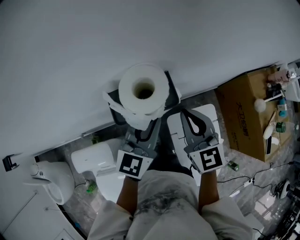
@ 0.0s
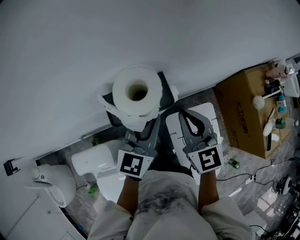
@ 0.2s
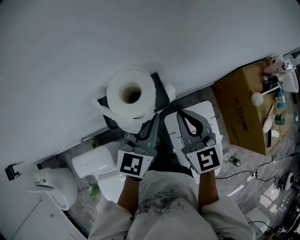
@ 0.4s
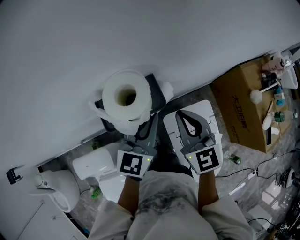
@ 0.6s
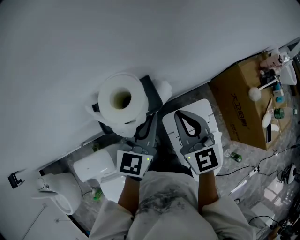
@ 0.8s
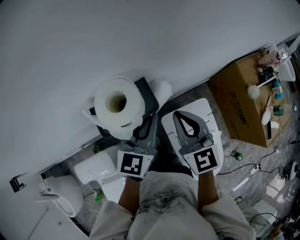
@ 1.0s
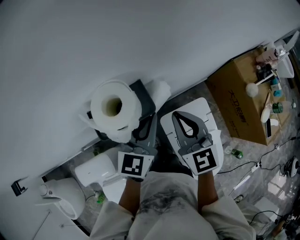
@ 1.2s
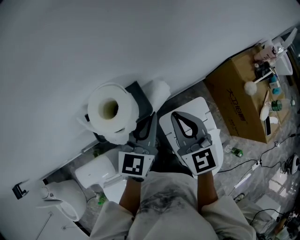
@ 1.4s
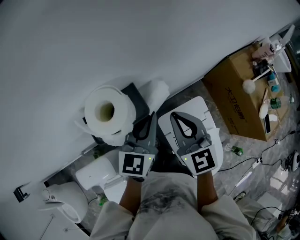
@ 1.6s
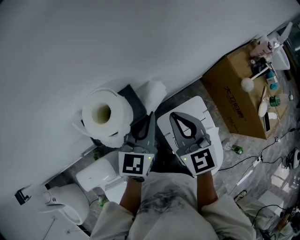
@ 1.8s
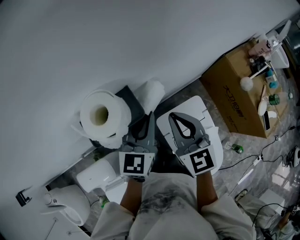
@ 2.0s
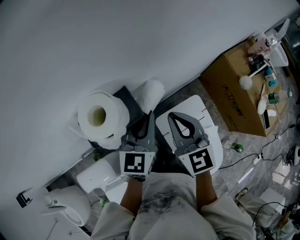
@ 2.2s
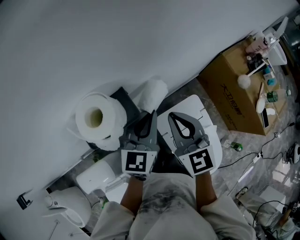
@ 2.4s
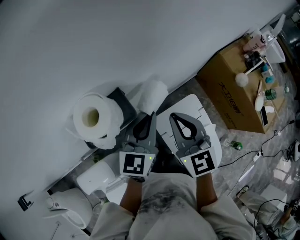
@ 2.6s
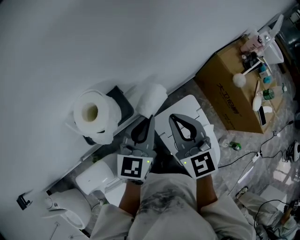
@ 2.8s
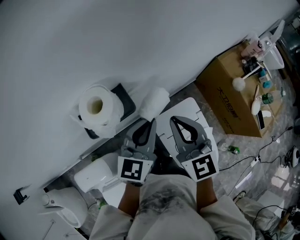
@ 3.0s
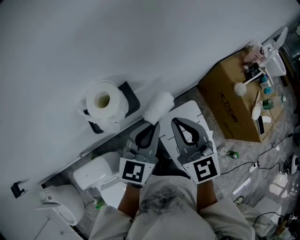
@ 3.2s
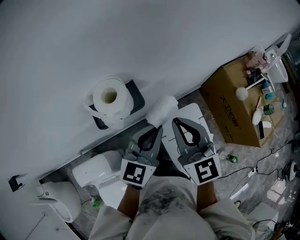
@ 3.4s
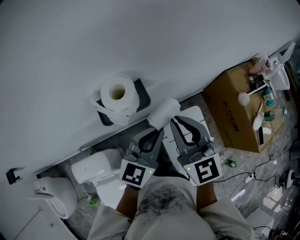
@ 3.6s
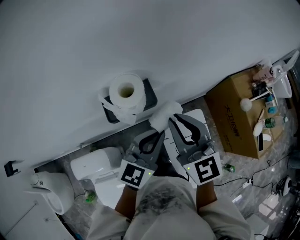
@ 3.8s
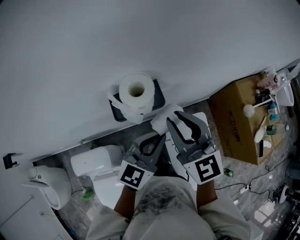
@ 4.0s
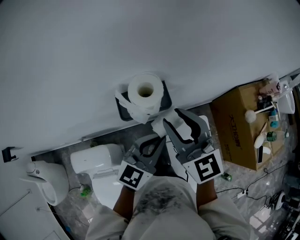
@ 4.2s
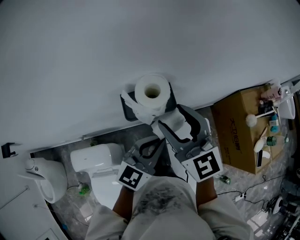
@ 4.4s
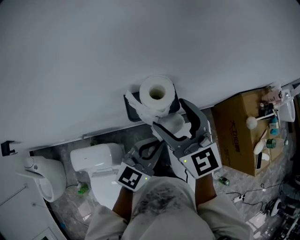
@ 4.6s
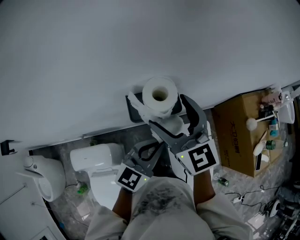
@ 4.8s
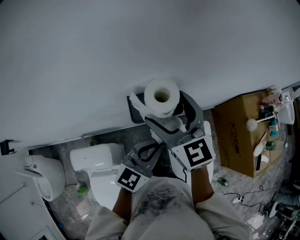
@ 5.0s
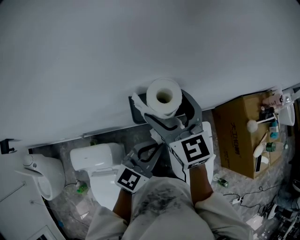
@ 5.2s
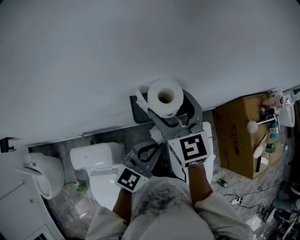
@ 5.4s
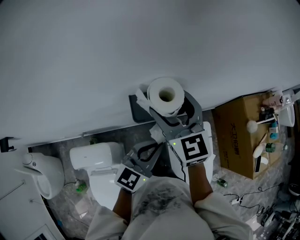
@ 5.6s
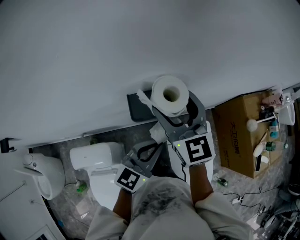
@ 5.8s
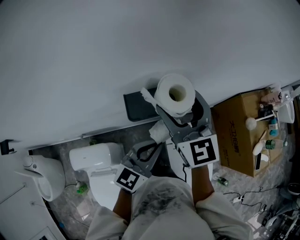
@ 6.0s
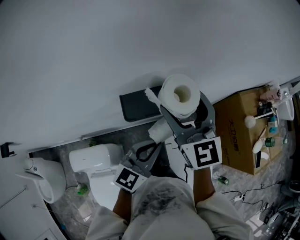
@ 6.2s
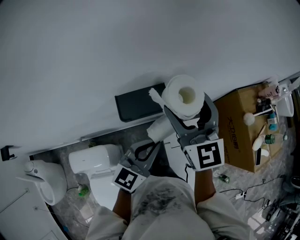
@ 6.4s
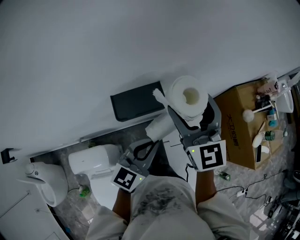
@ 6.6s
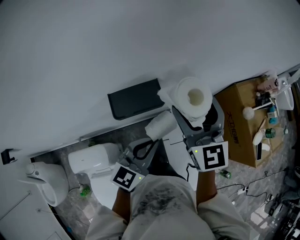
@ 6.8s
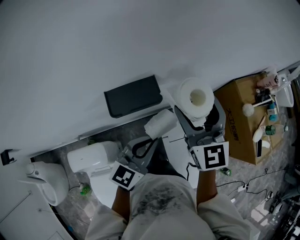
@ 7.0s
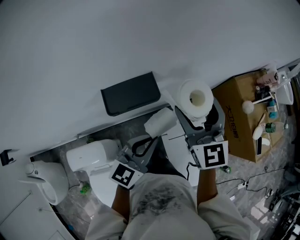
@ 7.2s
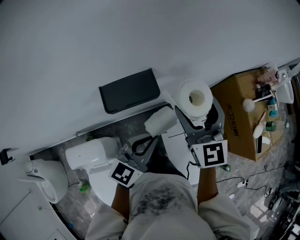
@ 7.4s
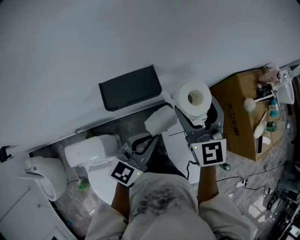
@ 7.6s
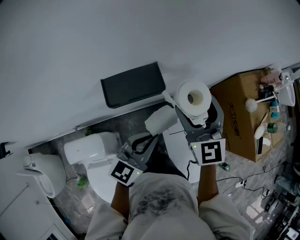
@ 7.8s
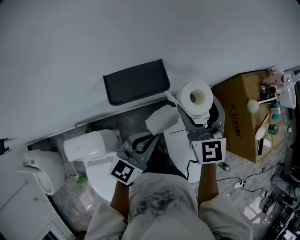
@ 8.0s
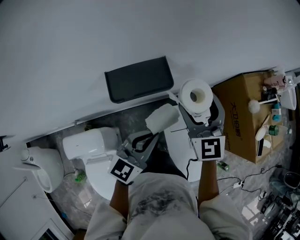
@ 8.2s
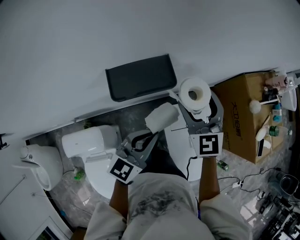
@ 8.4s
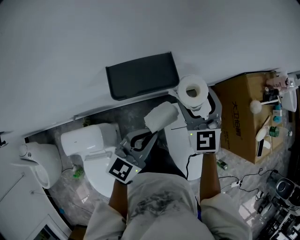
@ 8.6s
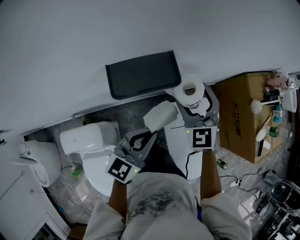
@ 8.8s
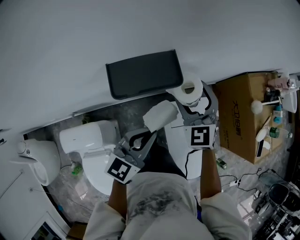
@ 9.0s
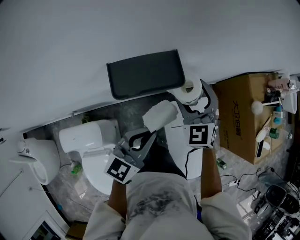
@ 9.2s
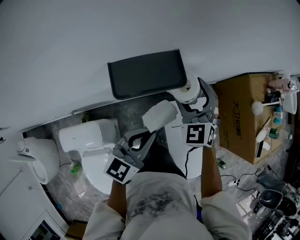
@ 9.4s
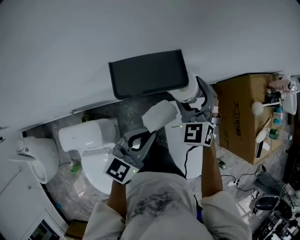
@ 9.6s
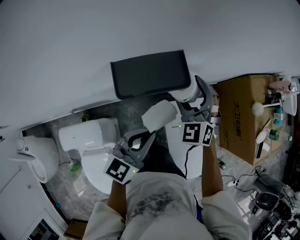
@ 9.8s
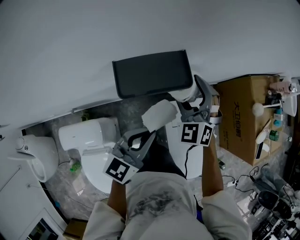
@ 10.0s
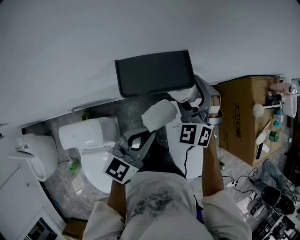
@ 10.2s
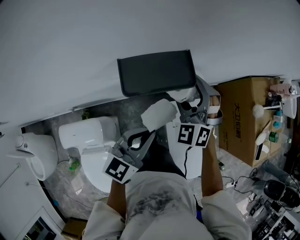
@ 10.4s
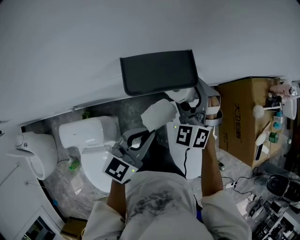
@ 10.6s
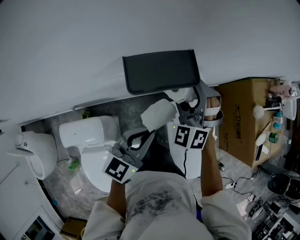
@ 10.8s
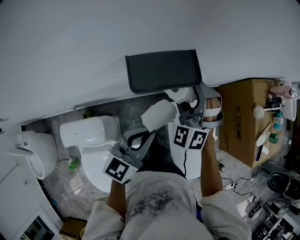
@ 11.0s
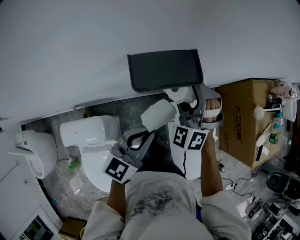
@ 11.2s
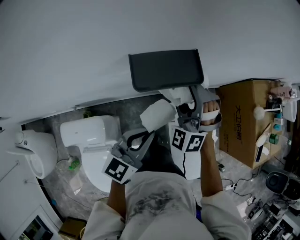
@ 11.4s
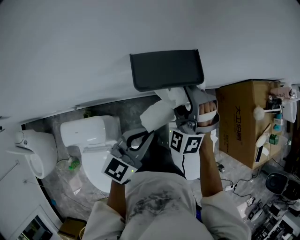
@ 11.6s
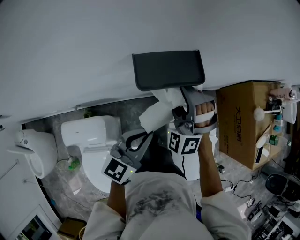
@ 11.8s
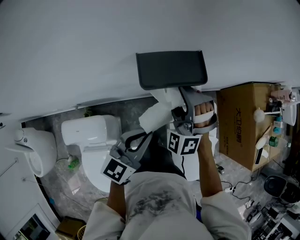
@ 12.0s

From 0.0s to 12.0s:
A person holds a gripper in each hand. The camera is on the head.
From 0.0s to 1.6s: The left gripper shifts approximately 5 cm to the right.
From 1.6s to 3.0s: The left gripper ends up approximately 5 cm from where it was. The right gripper travels upward by roughly 5 cm.
From 3.0s to 4.4s: The right gripper travels to the left and upward by approximately 15 cm, swivels roughly 20 degrees, and opens its fingers, while the left gripper heads to the left and backward, covering roughly 10 cm.
From 4.4s to 6.0s: The right gripper travels forward by approximately 5 cm.
From 6.0s to 7.6s: The right gripper travels to the right and downward by approximately 15 cm. The left gripper ends up approximately 5 cm from where it was.
From 7.6s to 9.0s: The left gripper ends up approximately 5 cm from where it was. The right gripper moves downward, roughly 10 cm, and swivels approximately 20 degrees.
From 9.0s to 10.4s: The right gripper heads to the left, covering some 5 cm, and changes its angle by about 30 degrees.
From 10.4s to 12.0s: The right gripper travels to the left and backward by some 10 cm.

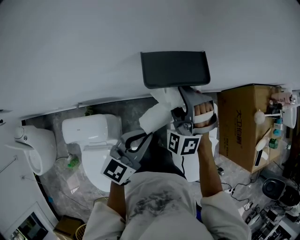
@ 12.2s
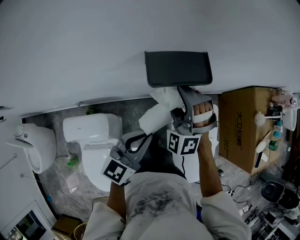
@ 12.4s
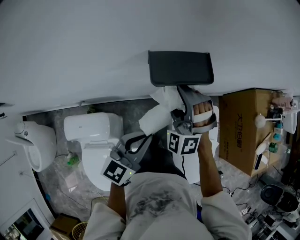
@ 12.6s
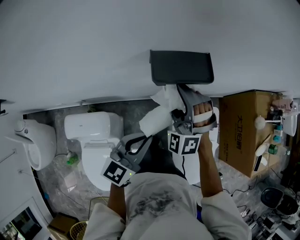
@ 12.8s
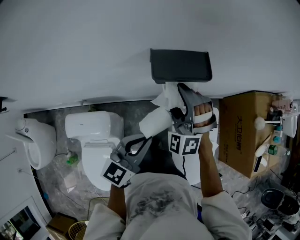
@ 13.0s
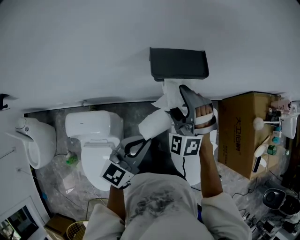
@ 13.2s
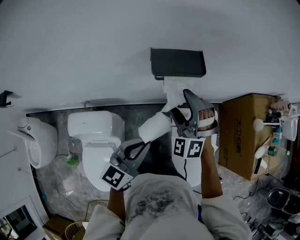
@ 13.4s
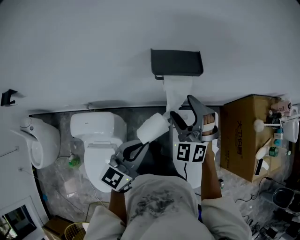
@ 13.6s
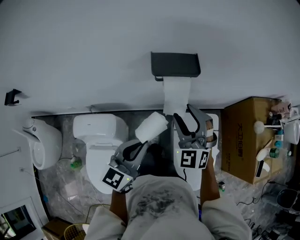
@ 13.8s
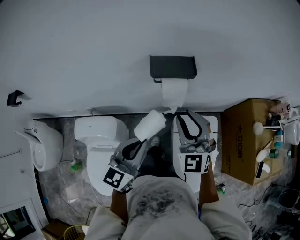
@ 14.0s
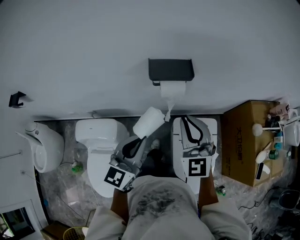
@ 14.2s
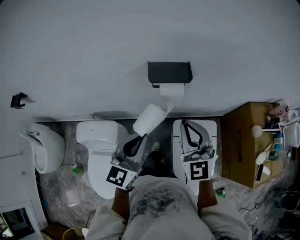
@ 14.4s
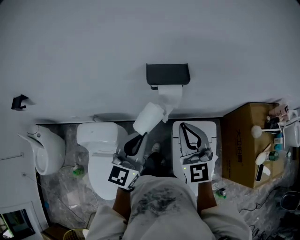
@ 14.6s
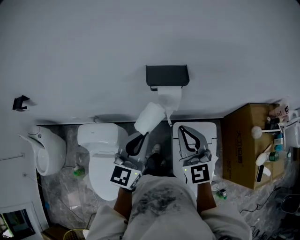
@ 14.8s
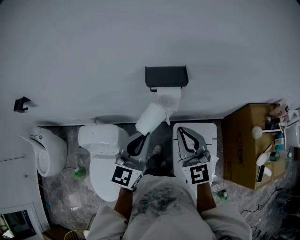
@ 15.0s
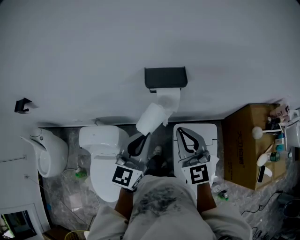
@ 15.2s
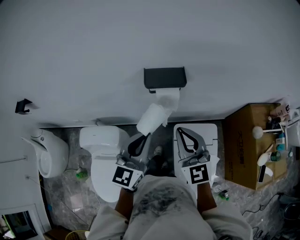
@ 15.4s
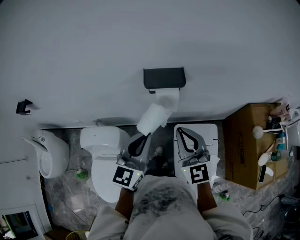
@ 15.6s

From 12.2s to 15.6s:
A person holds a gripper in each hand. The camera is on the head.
From 12.2s to 13.8s: The two grippers go approximately 10 cm backward and upward. The right gripper turns by some 30 degrees.
From 13.8s to 15.6s: The left gripper shifts some 5 cm upward. Meanwhile the right gripper travels upward and backward by roughly 10 cm, turns by approximately 30 degrees, and closes its fingers.

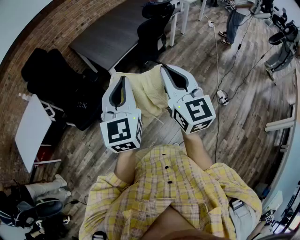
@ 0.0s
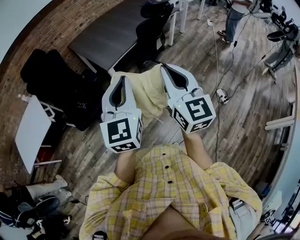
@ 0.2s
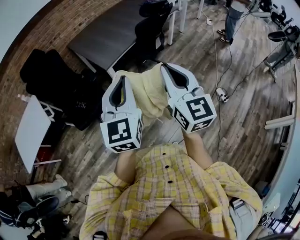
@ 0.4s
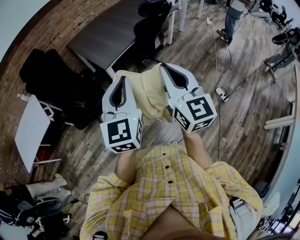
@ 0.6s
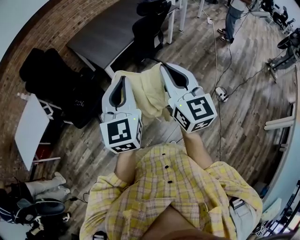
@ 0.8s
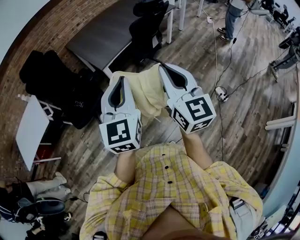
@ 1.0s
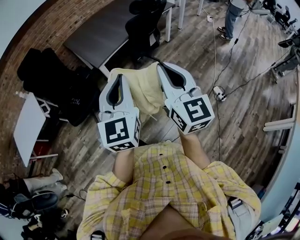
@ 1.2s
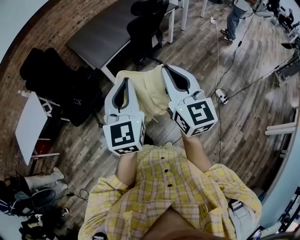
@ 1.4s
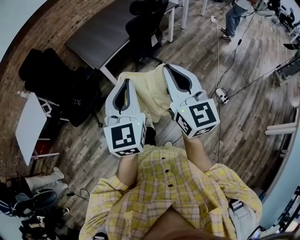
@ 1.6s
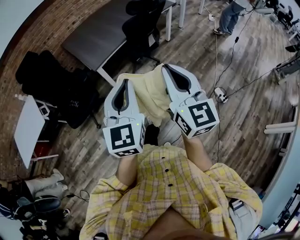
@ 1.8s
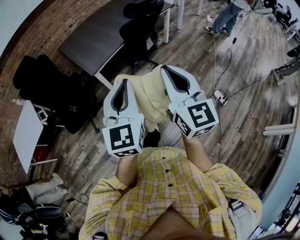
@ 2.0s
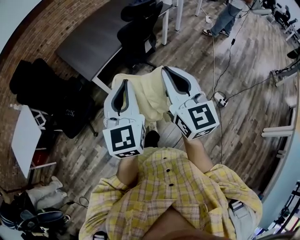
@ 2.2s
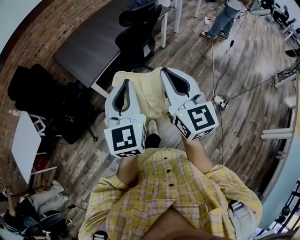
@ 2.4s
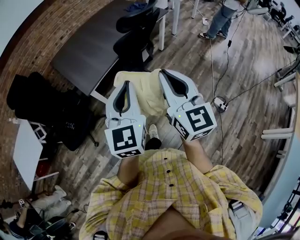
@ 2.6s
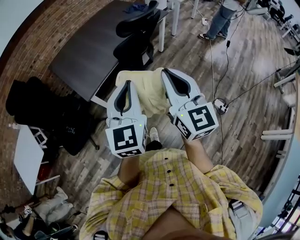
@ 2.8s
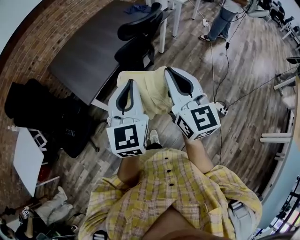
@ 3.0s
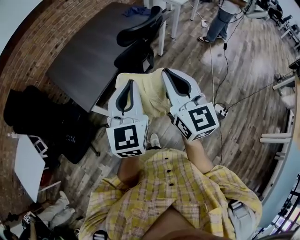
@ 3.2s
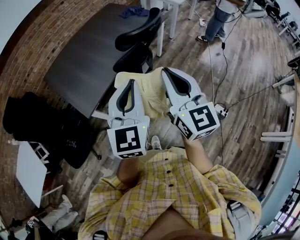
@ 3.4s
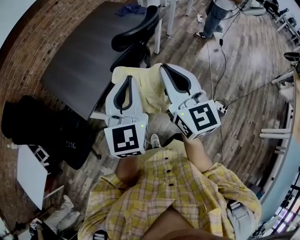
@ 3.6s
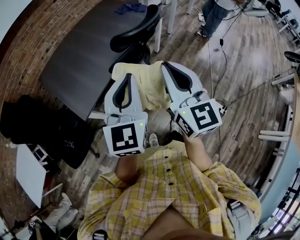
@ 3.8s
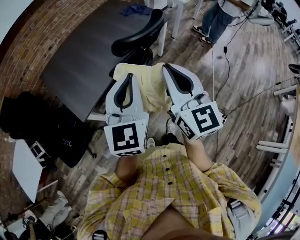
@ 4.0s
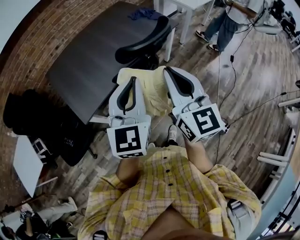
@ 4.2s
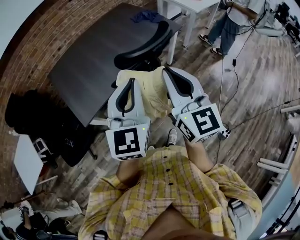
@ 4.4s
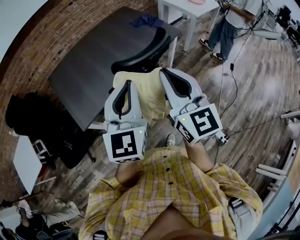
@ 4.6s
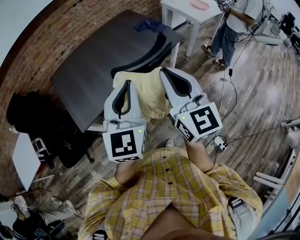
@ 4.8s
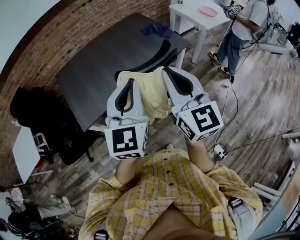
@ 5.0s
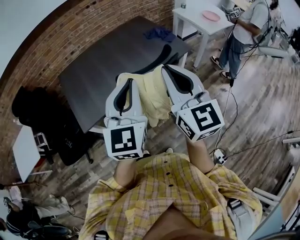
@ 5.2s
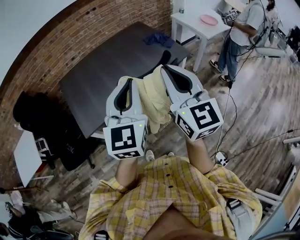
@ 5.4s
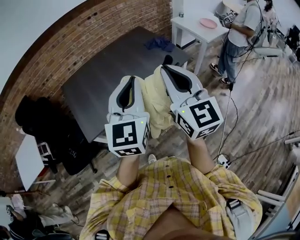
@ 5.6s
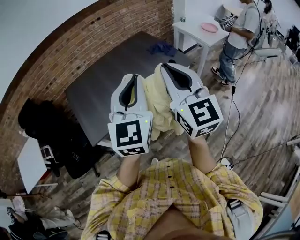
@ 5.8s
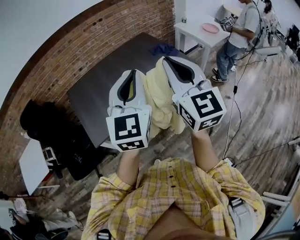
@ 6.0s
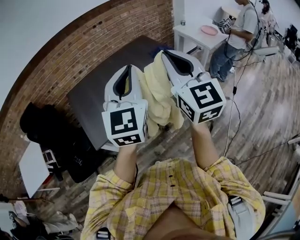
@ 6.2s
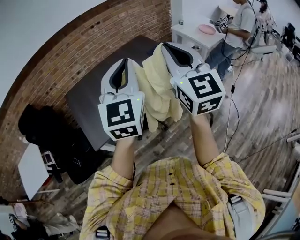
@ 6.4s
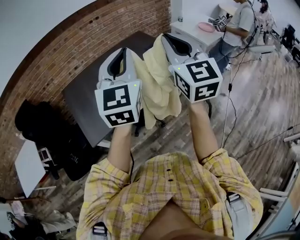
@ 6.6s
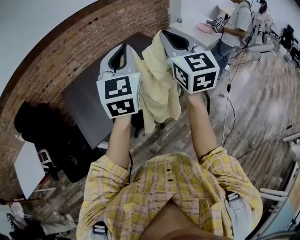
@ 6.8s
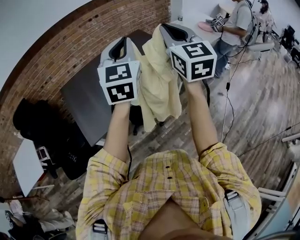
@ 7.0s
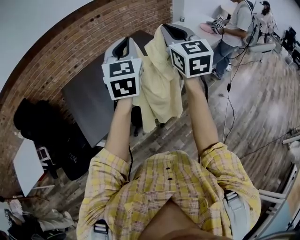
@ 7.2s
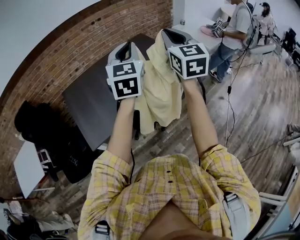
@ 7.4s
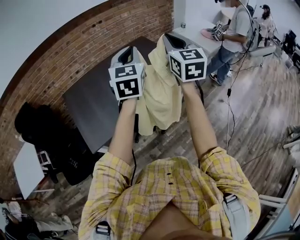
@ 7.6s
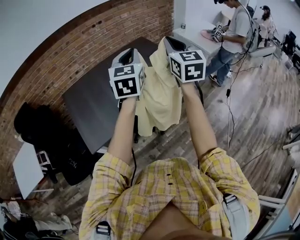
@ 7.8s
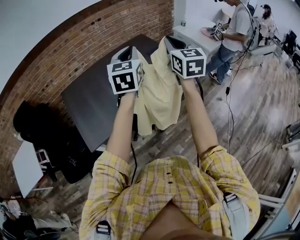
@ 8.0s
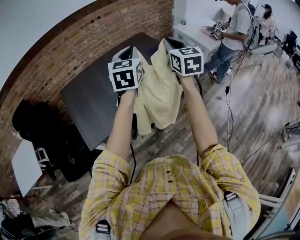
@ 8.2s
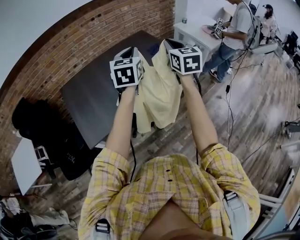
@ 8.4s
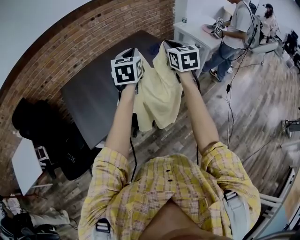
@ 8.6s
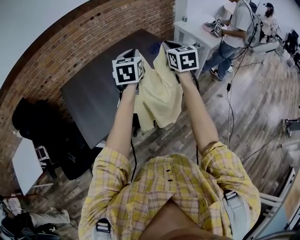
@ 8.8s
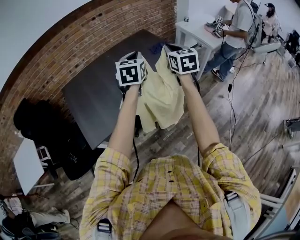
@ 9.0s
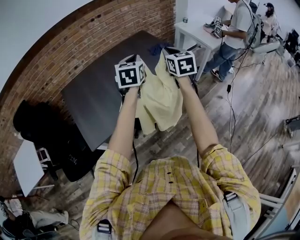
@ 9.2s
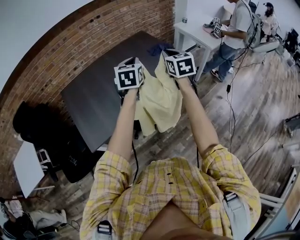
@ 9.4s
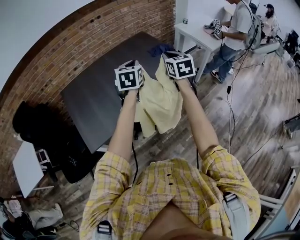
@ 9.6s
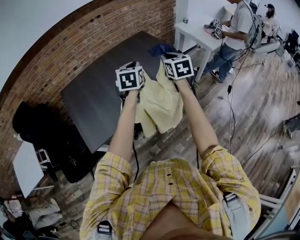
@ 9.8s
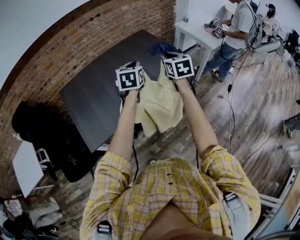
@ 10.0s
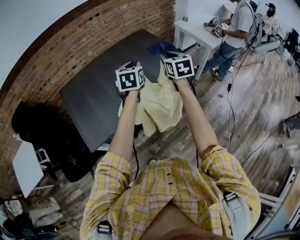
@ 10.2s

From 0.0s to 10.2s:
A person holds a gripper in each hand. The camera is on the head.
From 0.0s to 1.4s: The two grippers go roughly 10 cm to the right.
From 1.4s to 3.0s: Both grippers move forward, some 30 cm.
From 3.0s to 4.4s: The grippers both shift forward by roughly 20 cm.
From 4.4s to 5.8s: Both grippers travel together upward and forward, about 15 cm.
From 5.8s to 7.2s: Both grippers travel together forward, roughly 15 cm.
From 7.2s to 8.8s: Both grippers move downward and forward, approximately 15 cm. The left gripper changes its angle by some 20 degrees.
From 8.8s to 10.2s: Both grippers move downward, about 5 cm.
